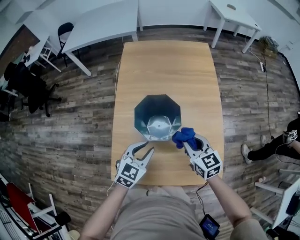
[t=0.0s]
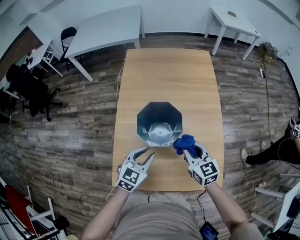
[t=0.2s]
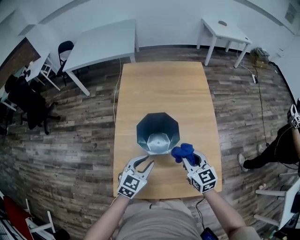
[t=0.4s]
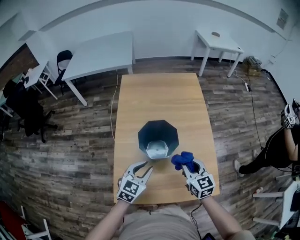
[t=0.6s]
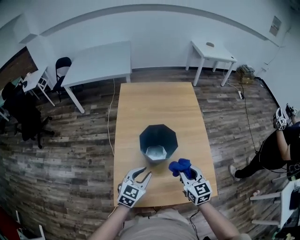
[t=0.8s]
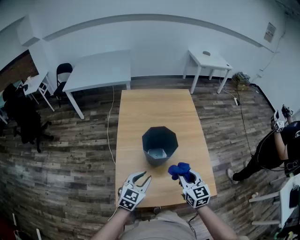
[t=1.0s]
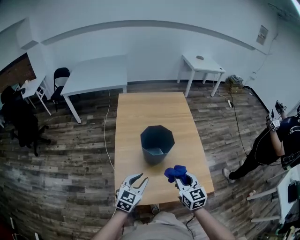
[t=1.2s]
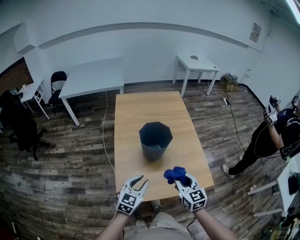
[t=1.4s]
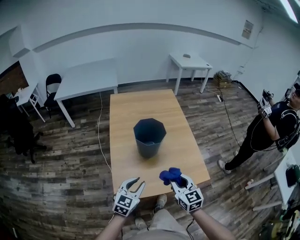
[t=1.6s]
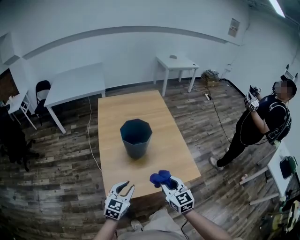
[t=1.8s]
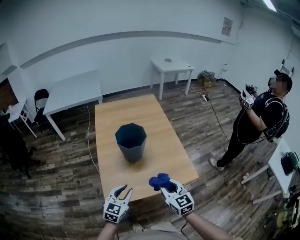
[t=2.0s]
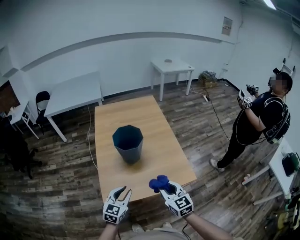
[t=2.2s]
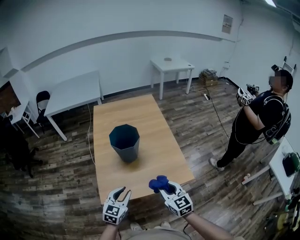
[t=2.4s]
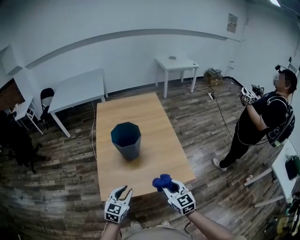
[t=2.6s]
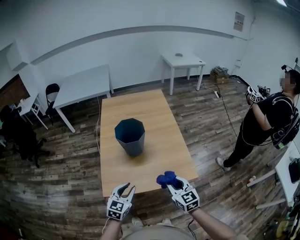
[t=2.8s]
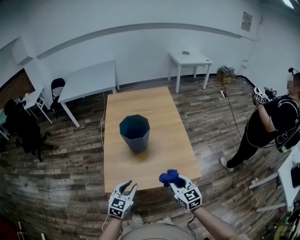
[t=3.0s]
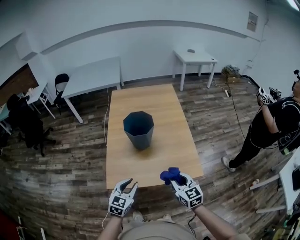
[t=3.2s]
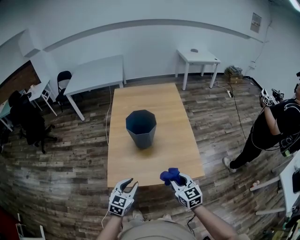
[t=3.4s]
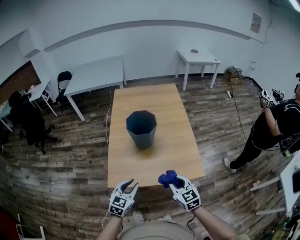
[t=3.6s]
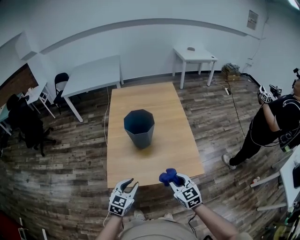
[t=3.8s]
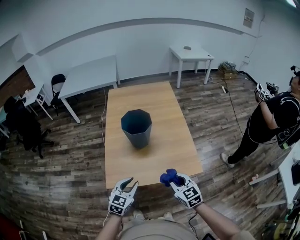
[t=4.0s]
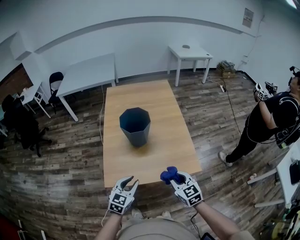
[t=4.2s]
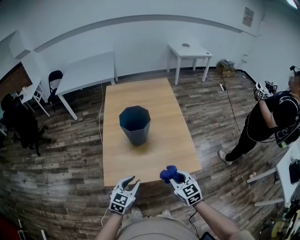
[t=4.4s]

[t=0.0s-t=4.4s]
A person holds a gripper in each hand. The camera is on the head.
t=0.0s to t=1.4s: The right gripper shifts by about 30 cm, and changes its angle by some 20 degrees.
t=1.4s to t=3.0s: The right gripper shifts by about 20 cm.

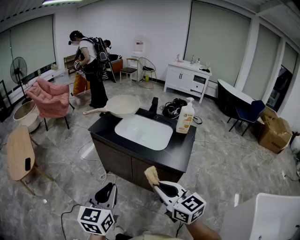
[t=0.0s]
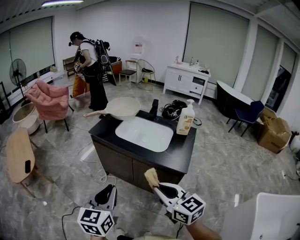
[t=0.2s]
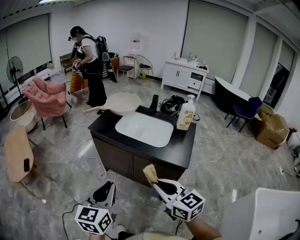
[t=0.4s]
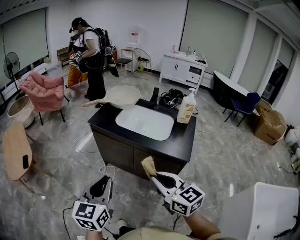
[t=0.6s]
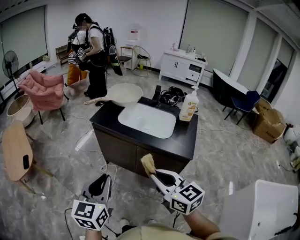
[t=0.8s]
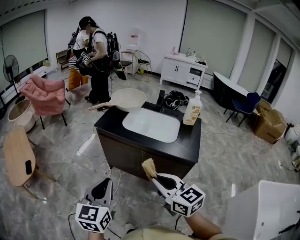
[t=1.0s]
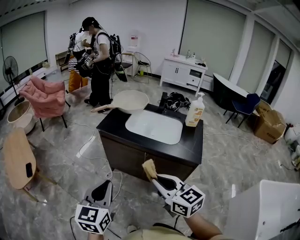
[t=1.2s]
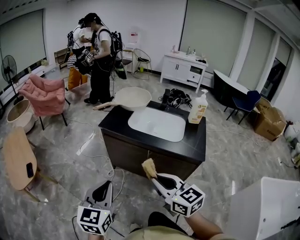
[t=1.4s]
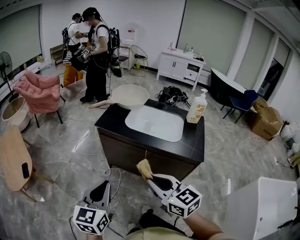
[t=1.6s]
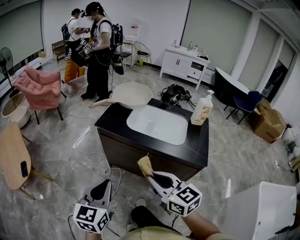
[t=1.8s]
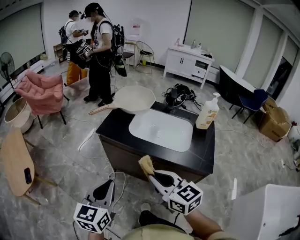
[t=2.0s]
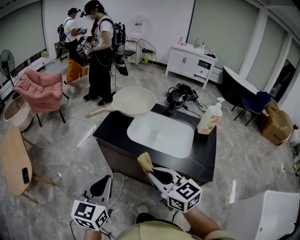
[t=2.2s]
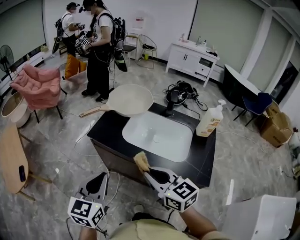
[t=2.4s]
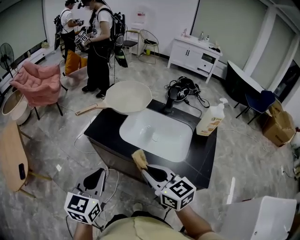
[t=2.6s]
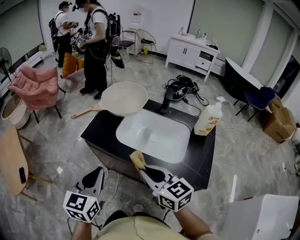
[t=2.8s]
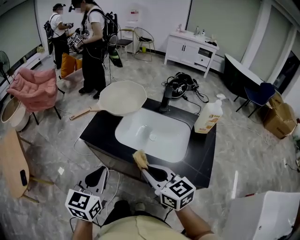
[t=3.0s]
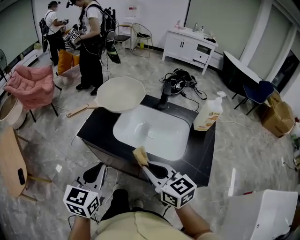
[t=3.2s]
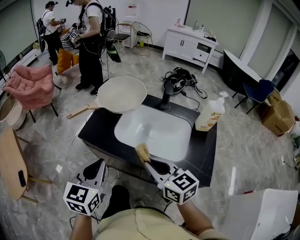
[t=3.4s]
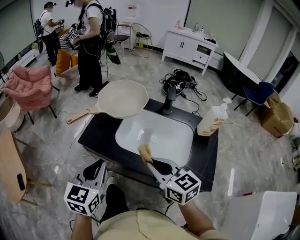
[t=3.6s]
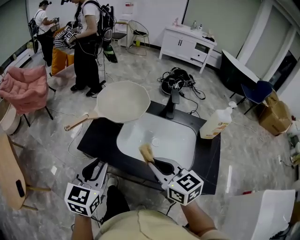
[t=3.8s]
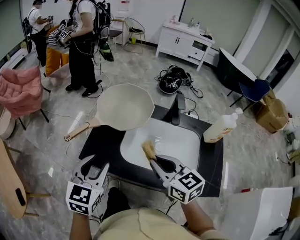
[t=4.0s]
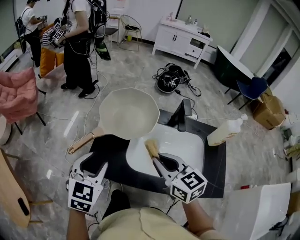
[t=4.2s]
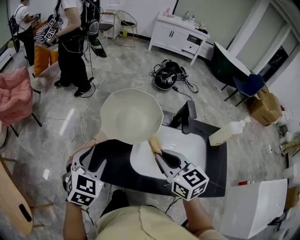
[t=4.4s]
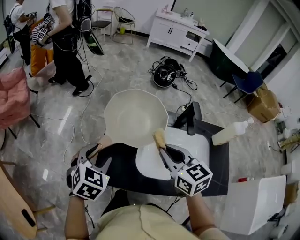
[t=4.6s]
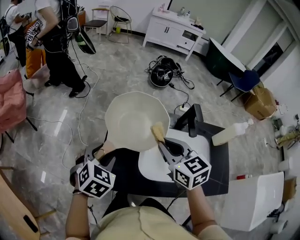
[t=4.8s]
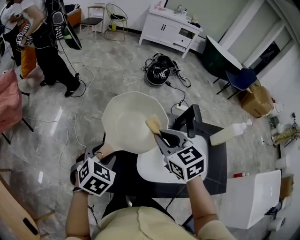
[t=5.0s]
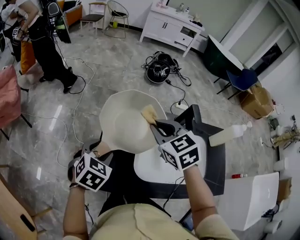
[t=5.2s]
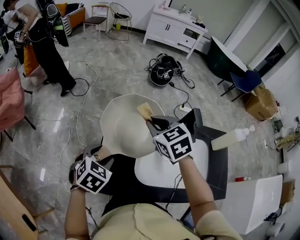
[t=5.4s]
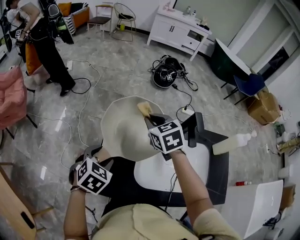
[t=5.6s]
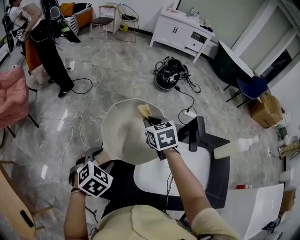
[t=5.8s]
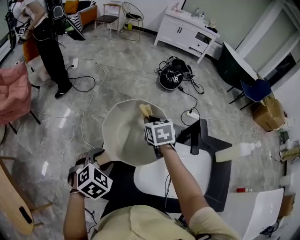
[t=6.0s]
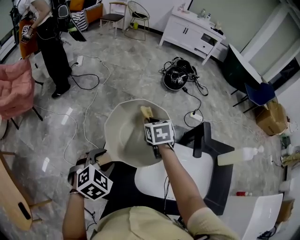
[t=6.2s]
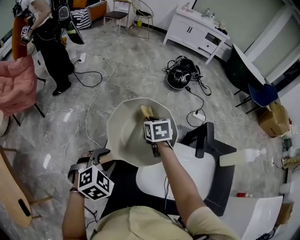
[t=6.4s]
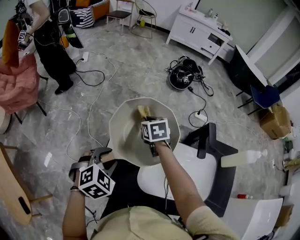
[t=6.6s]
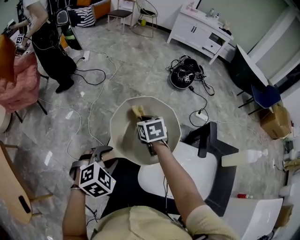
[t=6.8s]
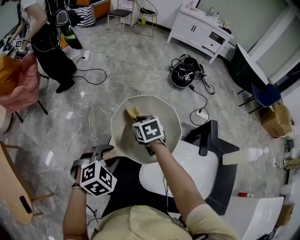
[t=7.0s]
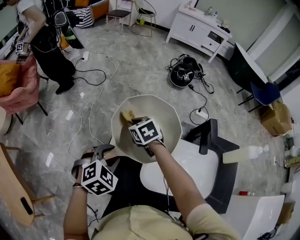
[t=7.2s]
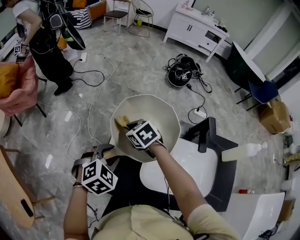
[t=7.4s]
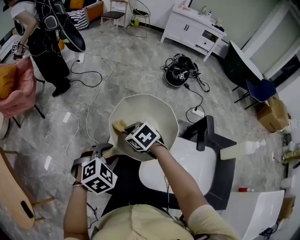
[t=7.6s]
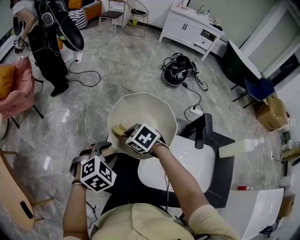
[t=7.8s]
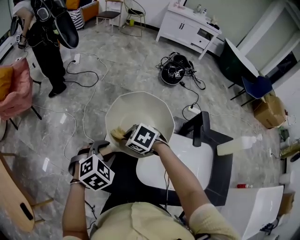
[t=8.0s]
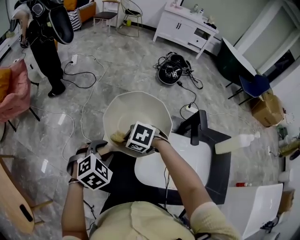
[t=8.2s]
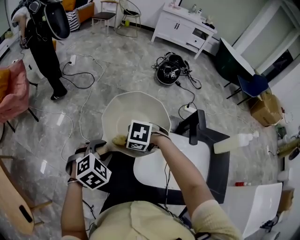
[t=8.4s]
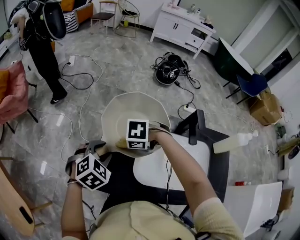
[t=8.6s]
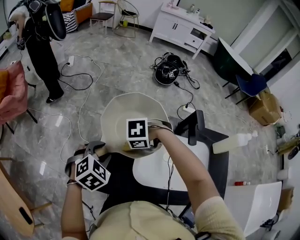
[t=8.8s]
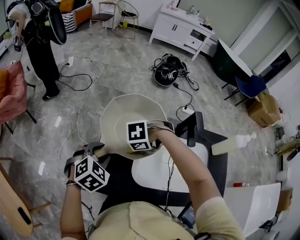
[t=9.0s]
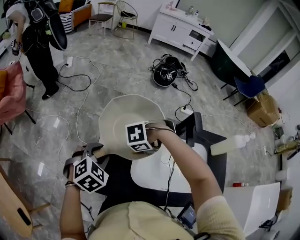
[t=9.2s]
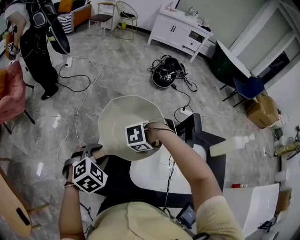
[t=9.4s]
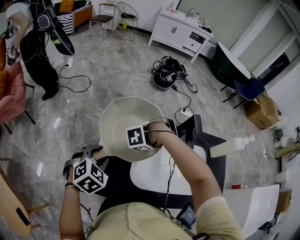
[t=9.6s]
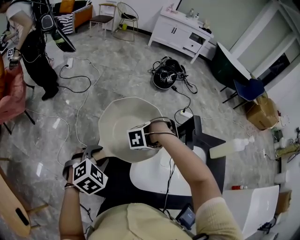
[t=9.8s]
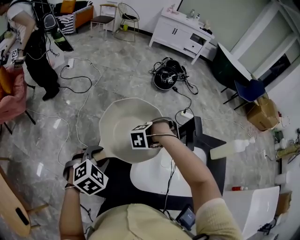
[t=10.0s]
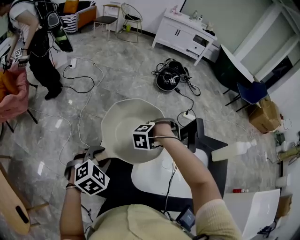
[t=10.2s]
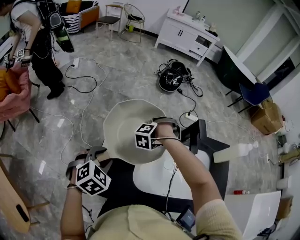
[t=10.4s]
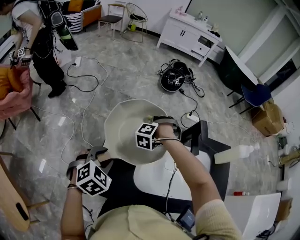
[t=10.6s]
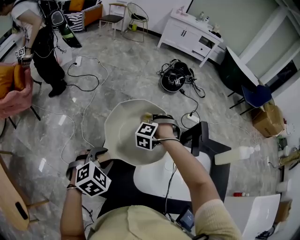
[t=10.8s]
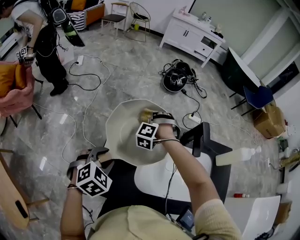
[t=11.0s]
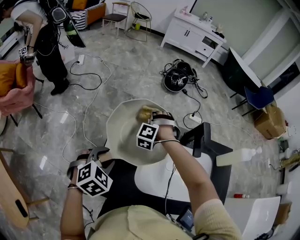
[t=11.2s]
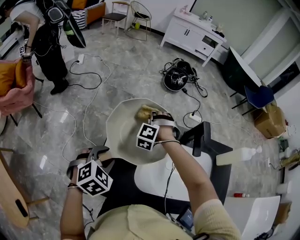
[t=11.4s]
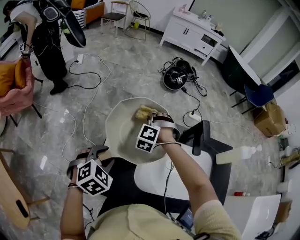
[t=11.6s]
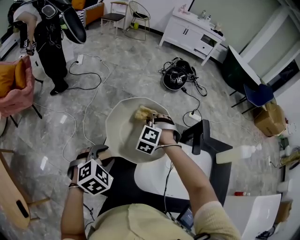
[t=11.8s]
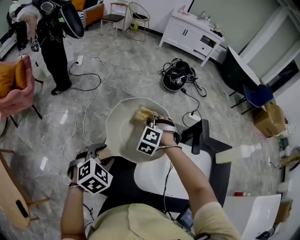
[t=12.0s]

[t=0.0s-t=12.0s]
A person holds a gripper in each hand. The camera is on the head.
t=0.0s to t=1.6s: The two grippers go some 20 cm to the left and forward.
t=1.6s to t=3.0s: Both grippers travel together forward and to the right, roughly 25 cm.
t=3.0s to t=4.4s: Both grippers travel together forward, about 30 cm. The left gripper swivels about 30 degrees, and opens up.
t=4.4s to t=6.0s: The left gripper heads forward and downward, covering approximately 15 cm. The right gripper is displaced forward by approximately 30 cm, and changes its angle by roughly 30 degrees.
t=6.0s to t=7.6s: The right gripper shifts approximately 15 cm to the left and backward, and changes its angle by about 40 degrees.
t=7.6s to t=9.0s: The right gripper ends up about 15 cm from where it was, and turns by roughly 60 degrees.
t=9.0s to t=10.4s: The right gripper shifts by roughly 15 cm, and rotates approximately 50 degrees.
t=10.4s to t=12.0s: The right gripper changes place by roughly 5 cm, and swivels some 30 degrees.

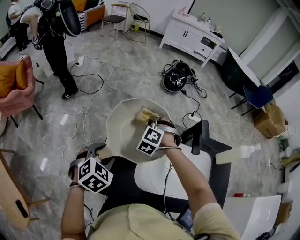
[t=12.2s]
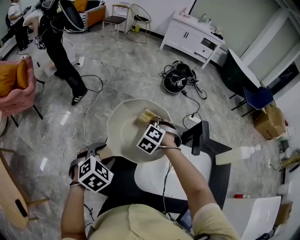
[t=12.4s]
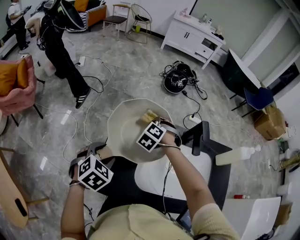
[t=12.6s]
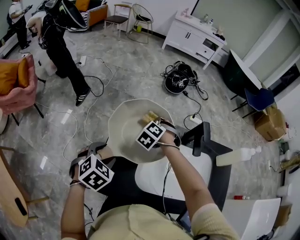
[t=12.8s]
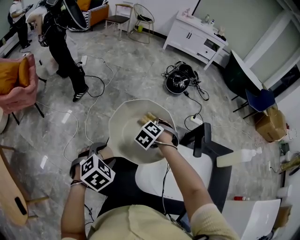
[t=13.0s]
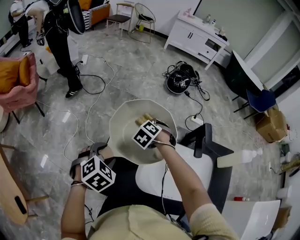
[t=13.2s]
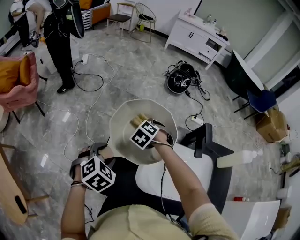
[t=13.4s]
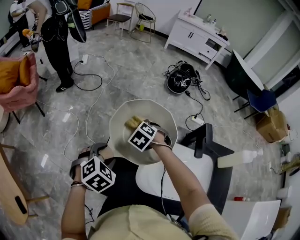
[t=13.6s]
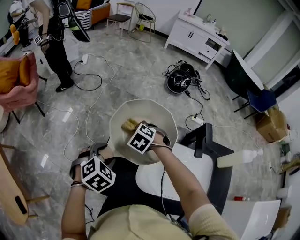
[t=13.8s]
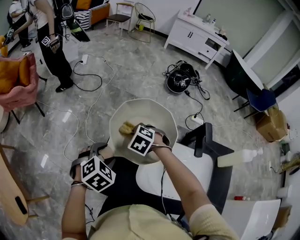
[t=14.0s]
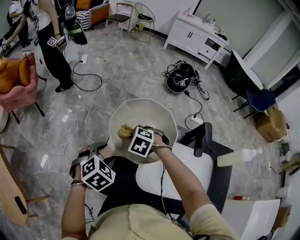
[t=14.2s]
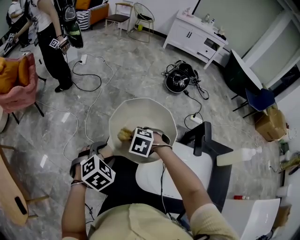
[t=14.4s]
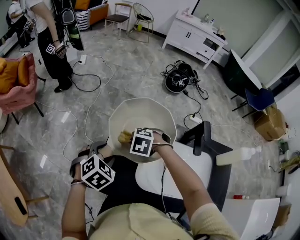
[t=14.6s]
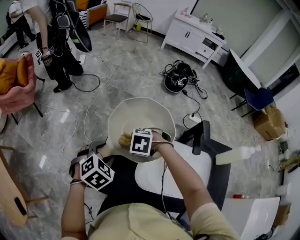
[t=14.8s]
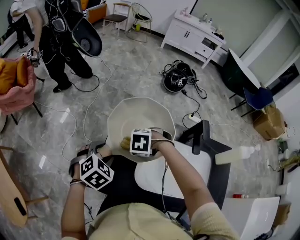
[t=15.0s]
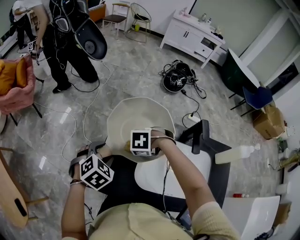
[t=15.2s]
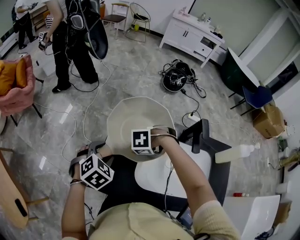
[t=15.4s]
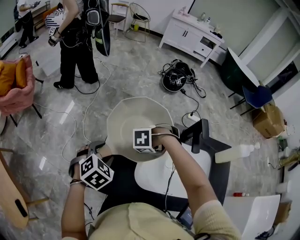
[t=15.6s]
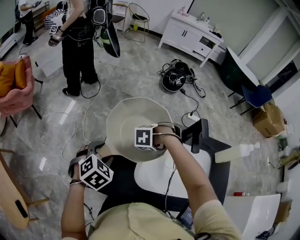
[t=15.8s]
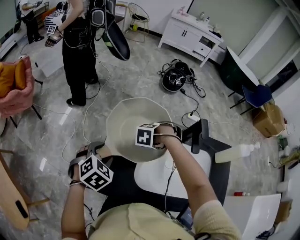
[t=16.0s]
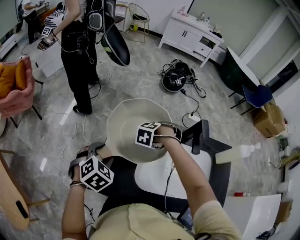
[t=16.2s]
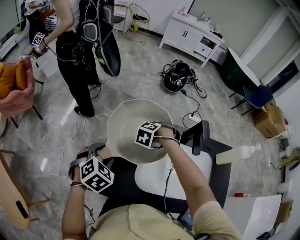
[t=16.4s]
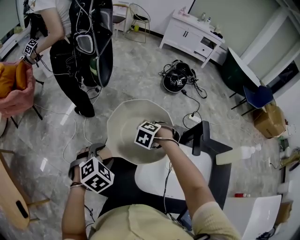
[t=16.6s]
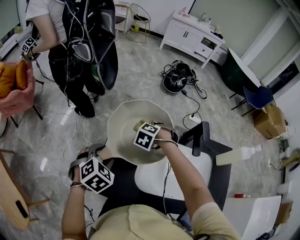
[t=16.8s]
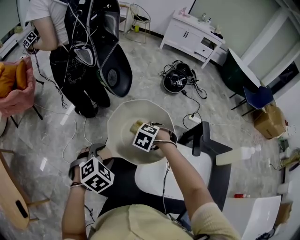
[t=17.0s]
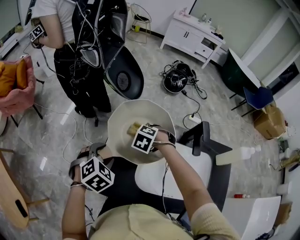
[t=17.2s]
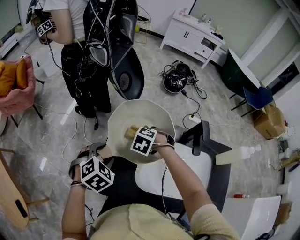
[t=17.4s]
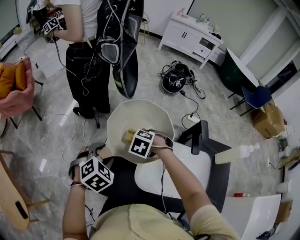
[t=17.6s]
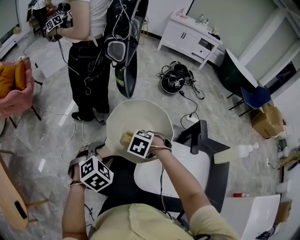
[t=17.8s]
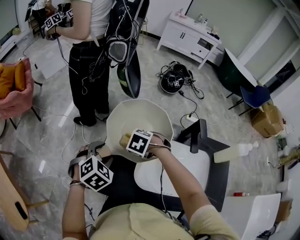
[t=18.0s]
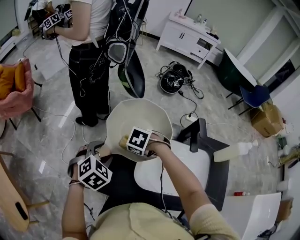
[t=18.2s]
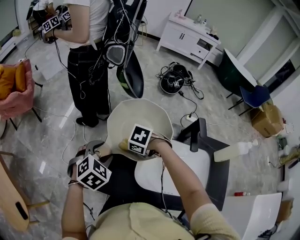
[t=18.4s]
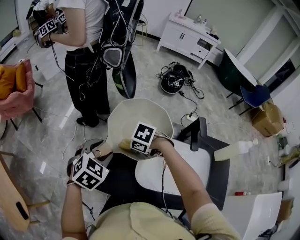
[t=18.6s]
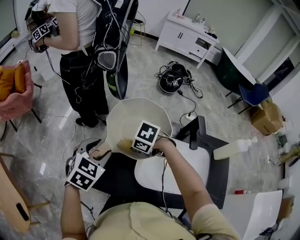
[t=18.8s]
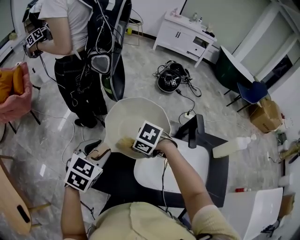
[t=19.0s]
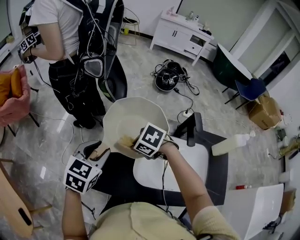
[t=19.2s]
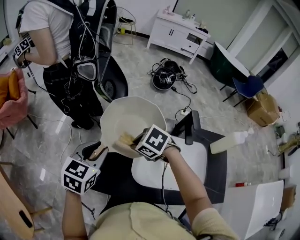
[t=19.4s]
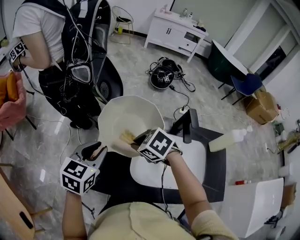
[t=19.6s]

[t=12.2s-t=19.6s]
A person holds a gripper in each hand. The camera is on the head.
t=12.2s to t=13.6s: The right gripper goes some 5 cm to the left, and swivels about 30 degrees.
t=13.6s to t=15.2s: The right gripper moves about 15 cm, and rotates about 40 degrees.
t=15.2s to t=16.6s: The right gripper changes place by some 15 cm, and swivels approximately 30 degrees.
t=16.6s to t=18.2s: The right gripper changes place by about 10 cm, and turns by about 30 degrees.
t=18.2s to t=19.6s: Both grippers move upward, approximately 10 cm. The left gripper swivels approximately 40 degrees, and closes its fingers. Meanwhile the right gripper changes its angle by roughly 30 degrees.
